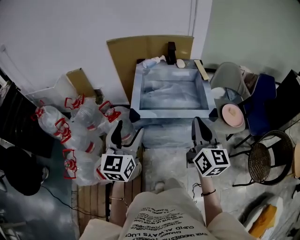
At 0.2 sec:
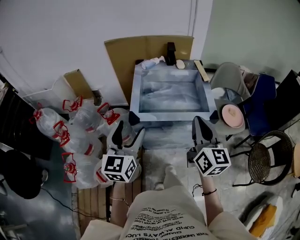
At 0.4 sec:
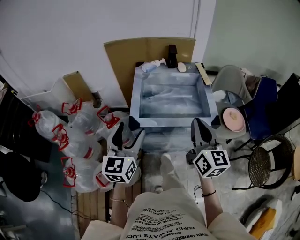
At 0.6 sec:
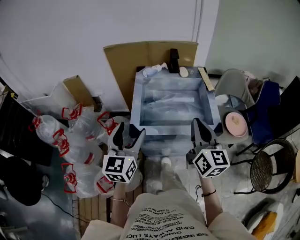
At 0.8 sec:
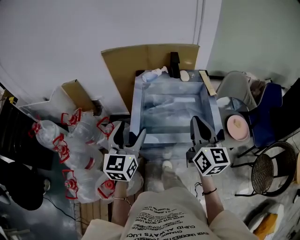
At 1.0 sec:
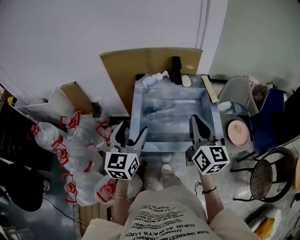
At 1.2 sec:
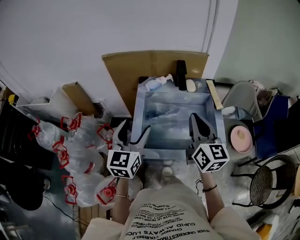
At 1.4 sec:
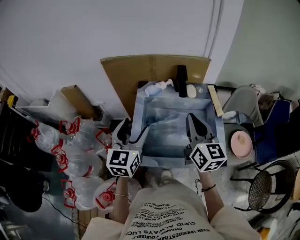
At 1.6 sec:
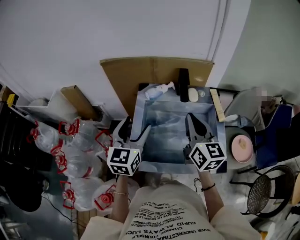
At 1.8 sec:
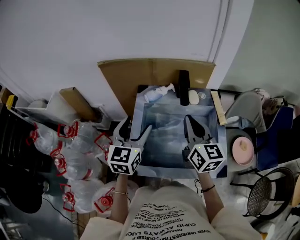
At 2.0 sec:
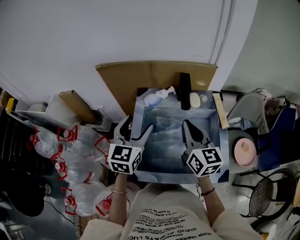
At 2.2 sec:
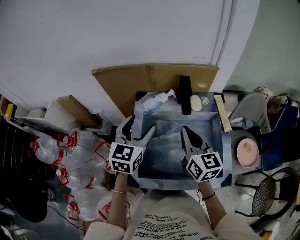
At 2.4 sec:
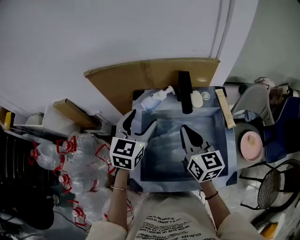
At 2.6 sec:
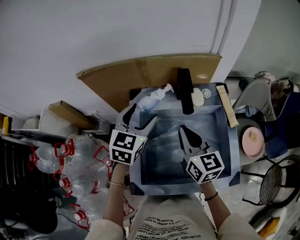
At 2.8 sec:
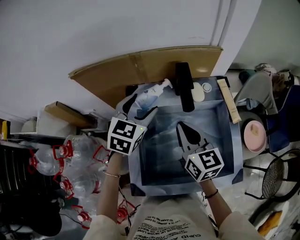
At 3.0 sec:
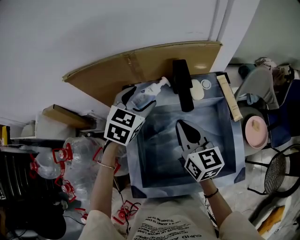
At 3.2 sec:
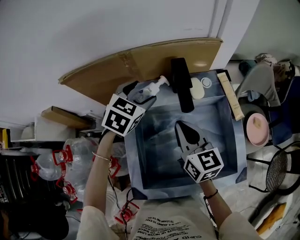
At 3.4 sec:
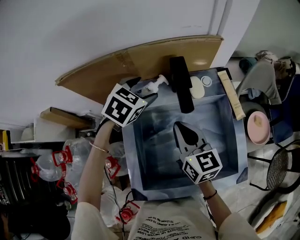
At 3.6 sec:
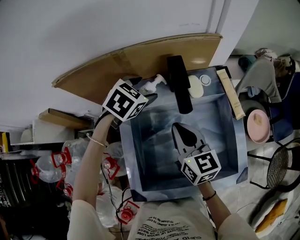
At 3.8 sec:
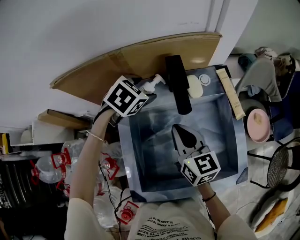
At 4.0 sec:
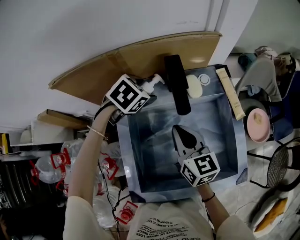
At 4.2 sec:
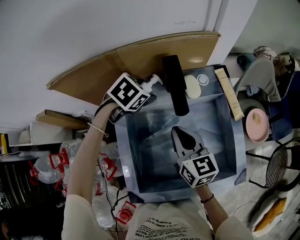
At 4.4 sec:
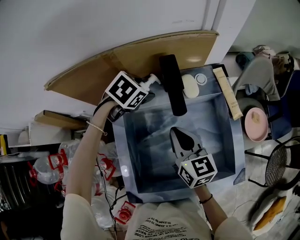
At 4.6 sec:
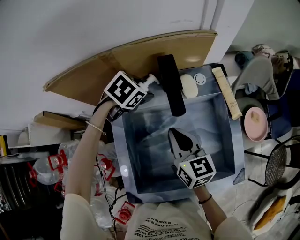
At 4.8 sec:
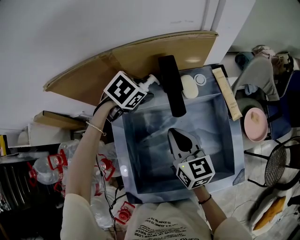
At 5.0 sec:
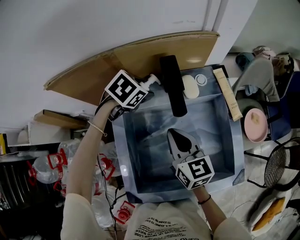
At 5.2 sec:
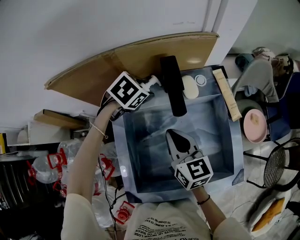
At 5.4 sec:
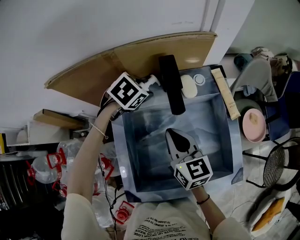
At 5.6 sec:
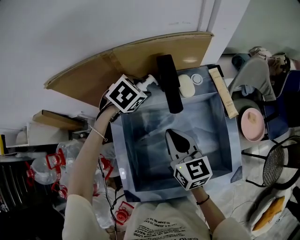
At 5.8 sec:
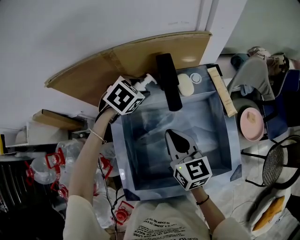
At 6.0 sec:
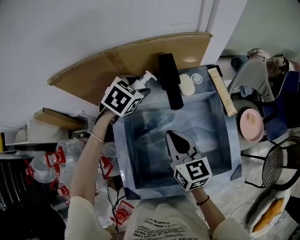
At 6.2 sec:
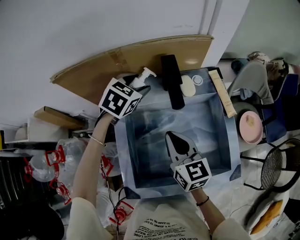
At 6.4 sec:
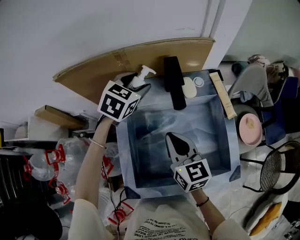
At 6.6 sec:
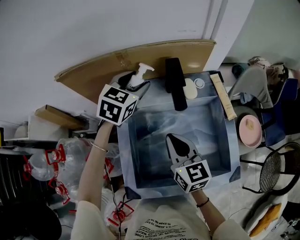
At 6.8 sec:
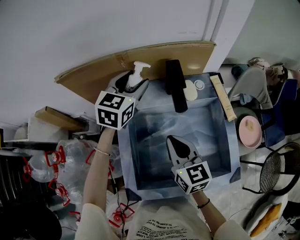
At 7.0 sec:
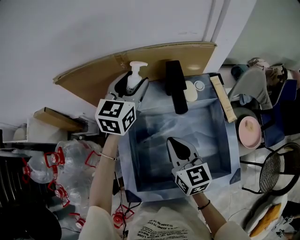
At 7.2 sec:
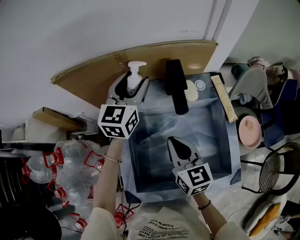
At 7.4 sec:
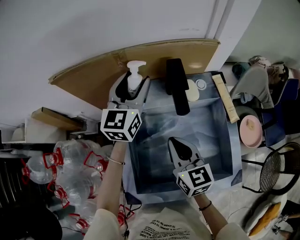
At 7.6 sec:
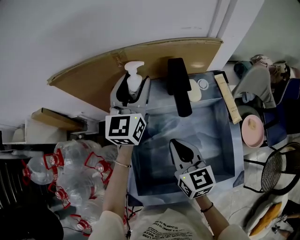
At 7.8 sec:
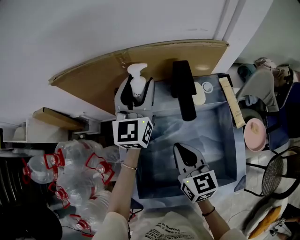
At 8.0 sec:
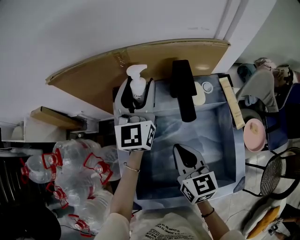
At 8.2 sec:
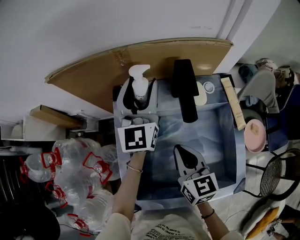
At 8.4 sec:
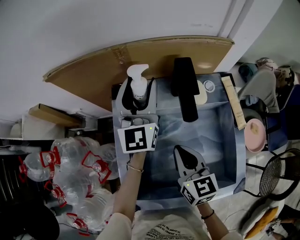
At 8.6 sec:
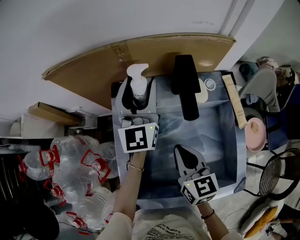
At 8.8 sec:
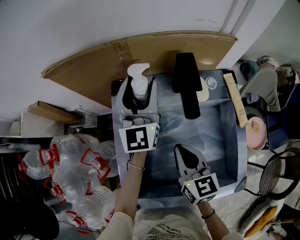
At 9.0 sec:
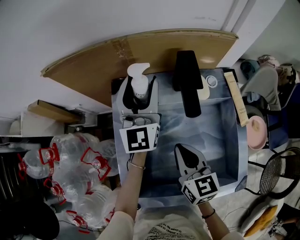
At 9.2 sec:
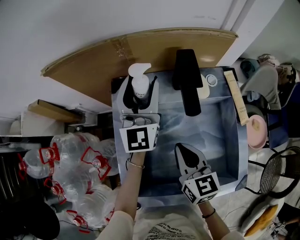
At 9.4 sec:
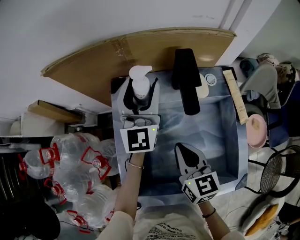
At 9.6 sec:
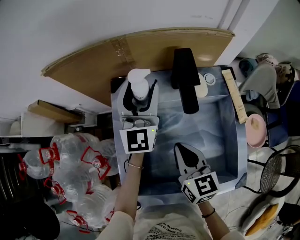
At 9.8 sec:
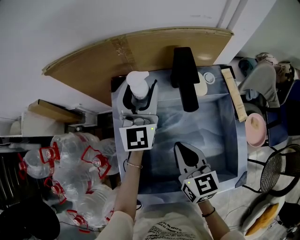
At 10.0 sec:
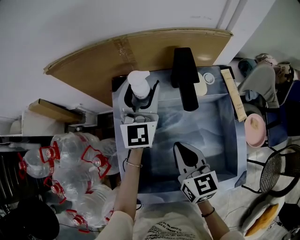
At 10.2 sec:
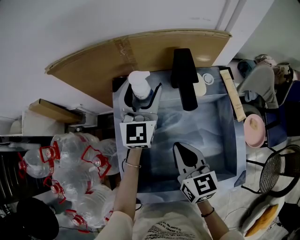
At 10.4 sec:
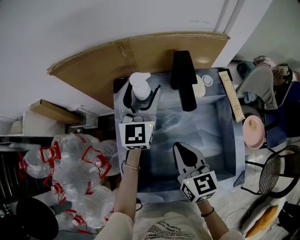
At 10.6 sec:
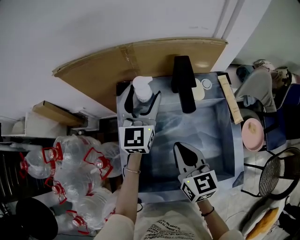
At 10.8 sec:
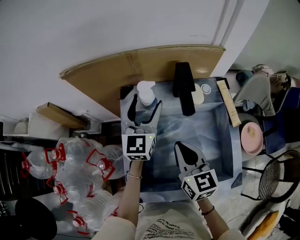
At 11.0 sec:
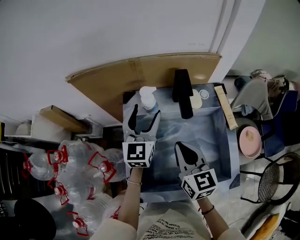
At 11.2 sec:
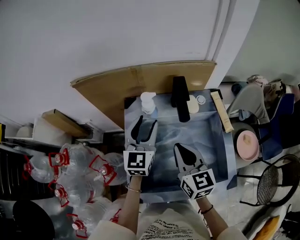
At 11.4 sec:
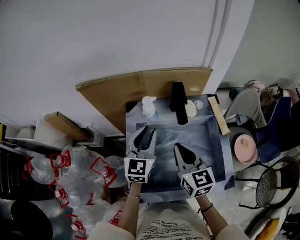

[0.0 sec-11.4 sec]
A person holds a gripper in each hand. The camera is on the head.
0.0 sec to 1.4 sec: Both grippers travel together forward, about 25 cm.
1.4 sec to 2.8 sec: The right gripper heads forward and downward, covering some 15 cm; the left gripper is displaced forward by about 20 cm, and rotates about 30 degrees.
2.8 sec to 4.2 sec: The left gripper shifts roughly 15 cm downward and forward, and angles its fingers downward, by about 40 degrees. Meanwhile the right gripper goes roughly 5 cm downward.
4.2 sec to 5.6 sec: The grippers make only small movements.
5.6 sec to 7.2 sec: The left gripper heads upward, covering roughly 15 cm, and points its fingers approximately 50 degrees further upward.
7.2 sec to 8.6 sec: The left gripper swivels some 20 degrees.
8.6 sec to 10.0 sec: The grippers move only a little.
10.0 sec to 11.4 sec: The right gripper is displaced upward by roughly 10 cm. The left gripper goes roughly 10 cm backward, and closes.

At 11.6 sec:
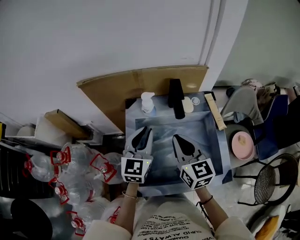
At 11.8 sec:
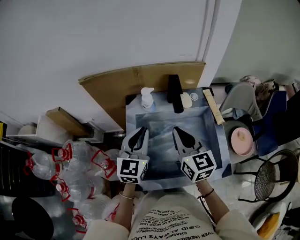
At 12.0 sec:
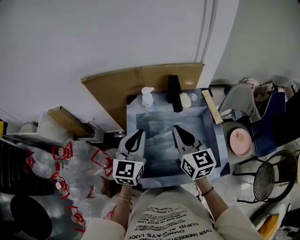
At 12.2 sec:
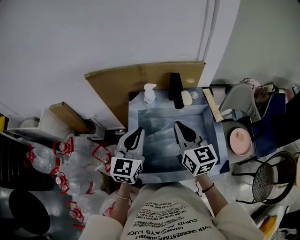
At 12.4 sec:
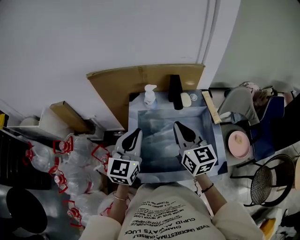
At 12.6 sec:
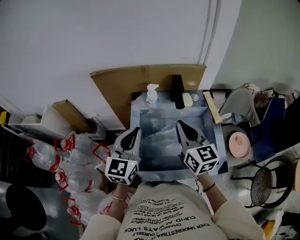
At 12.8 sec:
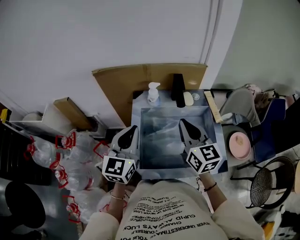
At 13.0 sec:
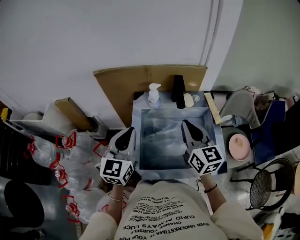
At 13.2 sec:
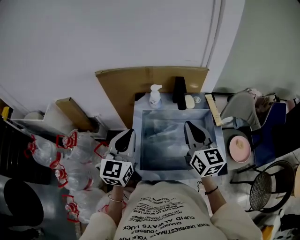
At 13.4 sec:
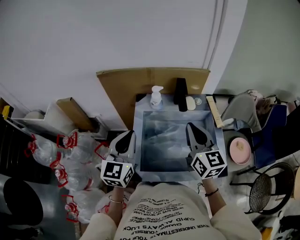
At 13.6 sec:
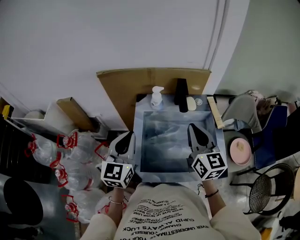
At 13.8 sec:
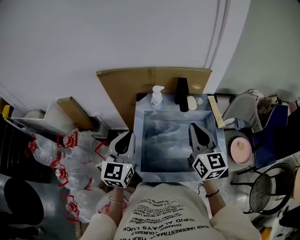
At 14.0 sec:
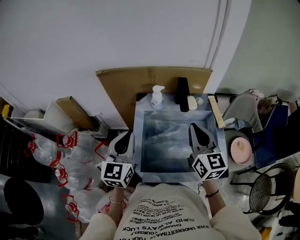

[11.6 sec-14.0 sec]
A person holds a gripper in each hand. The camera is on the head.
11.6 sec to 12.8 sec: The right gripper heads upward, covering roughly 5 cm. The left gripper moves backward, upward and to the left, approximately 15 cm.
12.8 sec to 14.0 sec: The grippers make only small movements.

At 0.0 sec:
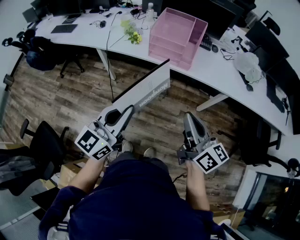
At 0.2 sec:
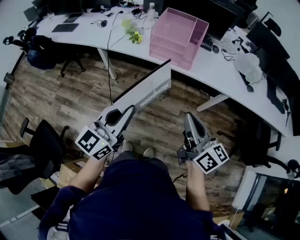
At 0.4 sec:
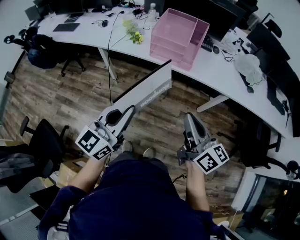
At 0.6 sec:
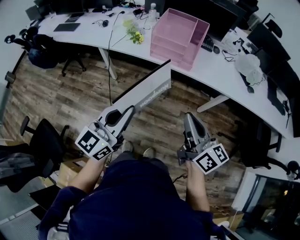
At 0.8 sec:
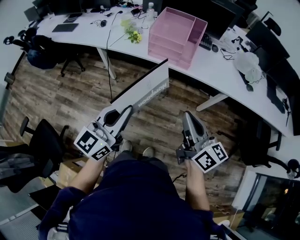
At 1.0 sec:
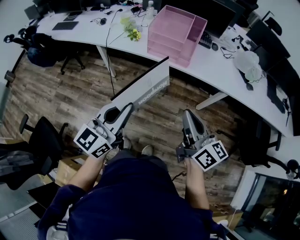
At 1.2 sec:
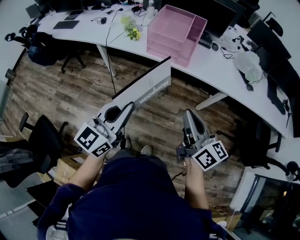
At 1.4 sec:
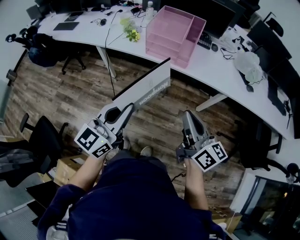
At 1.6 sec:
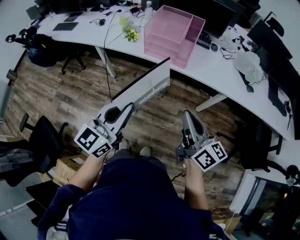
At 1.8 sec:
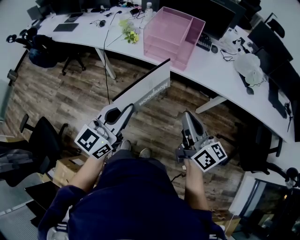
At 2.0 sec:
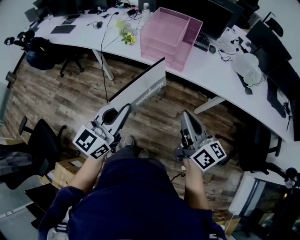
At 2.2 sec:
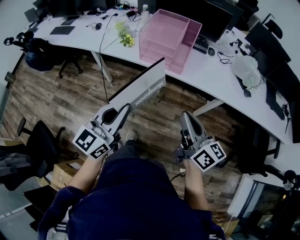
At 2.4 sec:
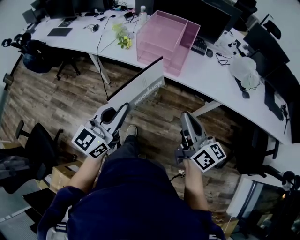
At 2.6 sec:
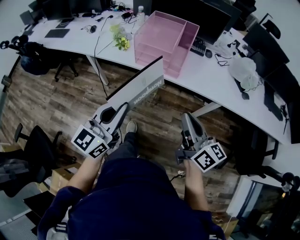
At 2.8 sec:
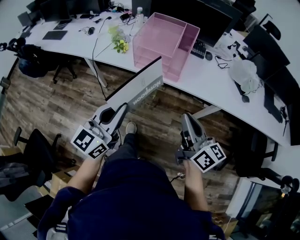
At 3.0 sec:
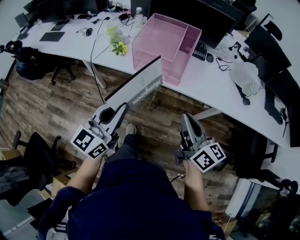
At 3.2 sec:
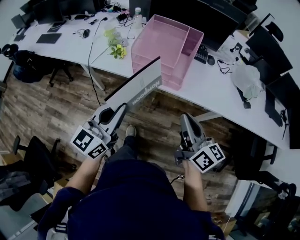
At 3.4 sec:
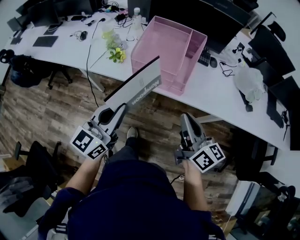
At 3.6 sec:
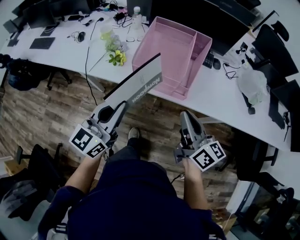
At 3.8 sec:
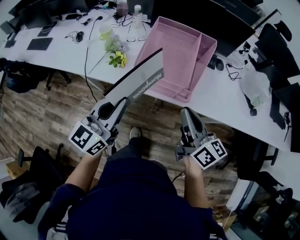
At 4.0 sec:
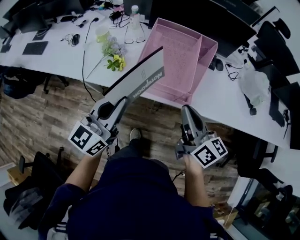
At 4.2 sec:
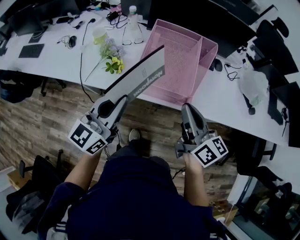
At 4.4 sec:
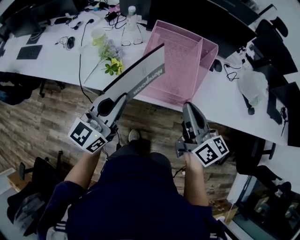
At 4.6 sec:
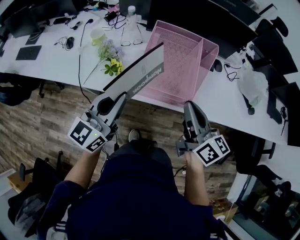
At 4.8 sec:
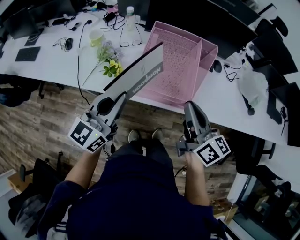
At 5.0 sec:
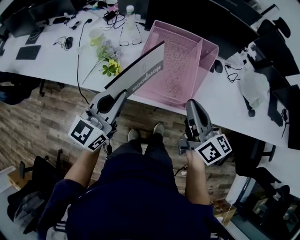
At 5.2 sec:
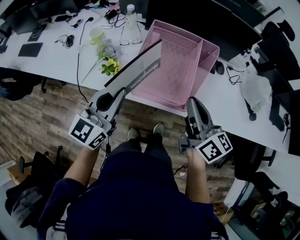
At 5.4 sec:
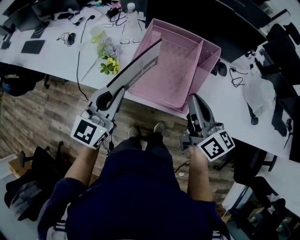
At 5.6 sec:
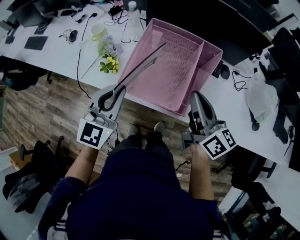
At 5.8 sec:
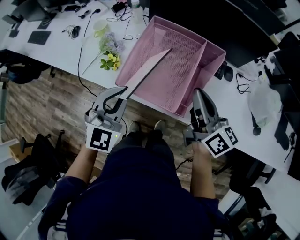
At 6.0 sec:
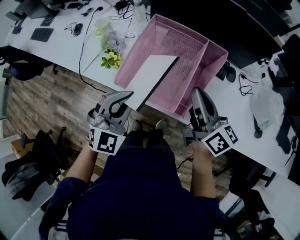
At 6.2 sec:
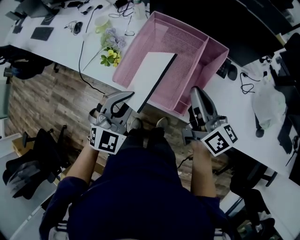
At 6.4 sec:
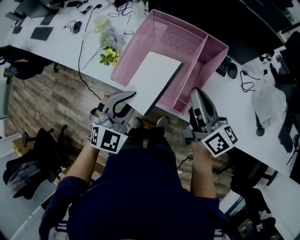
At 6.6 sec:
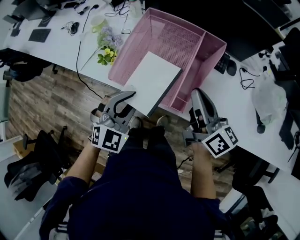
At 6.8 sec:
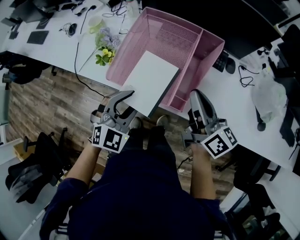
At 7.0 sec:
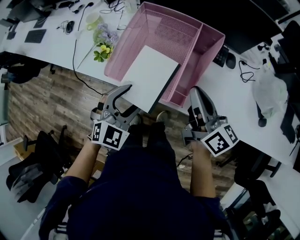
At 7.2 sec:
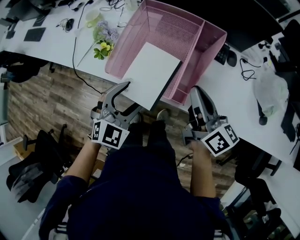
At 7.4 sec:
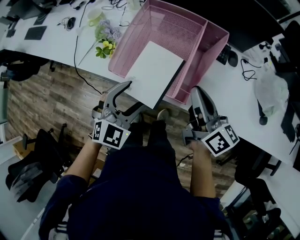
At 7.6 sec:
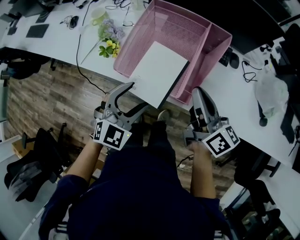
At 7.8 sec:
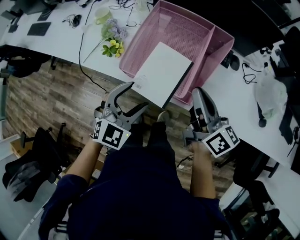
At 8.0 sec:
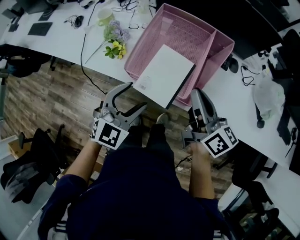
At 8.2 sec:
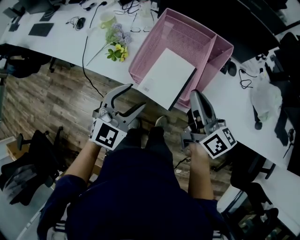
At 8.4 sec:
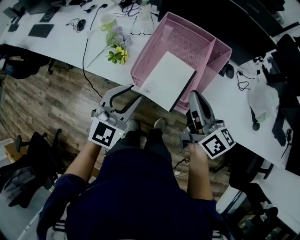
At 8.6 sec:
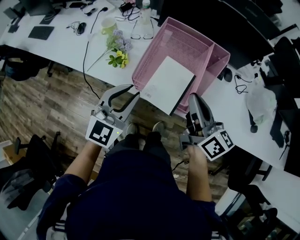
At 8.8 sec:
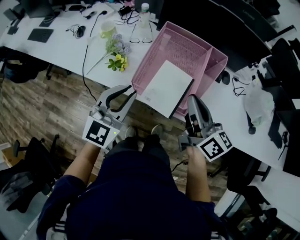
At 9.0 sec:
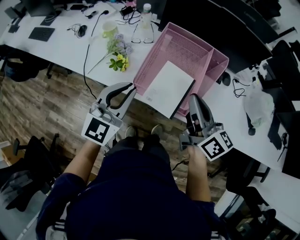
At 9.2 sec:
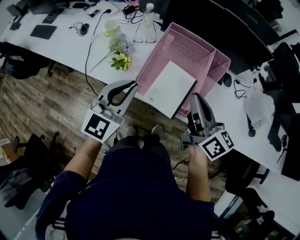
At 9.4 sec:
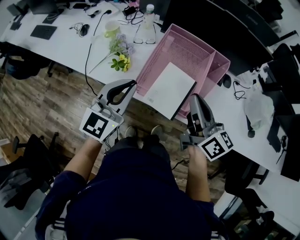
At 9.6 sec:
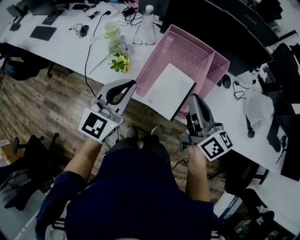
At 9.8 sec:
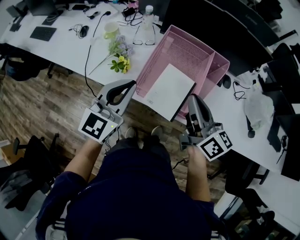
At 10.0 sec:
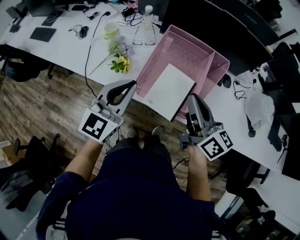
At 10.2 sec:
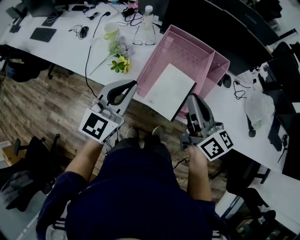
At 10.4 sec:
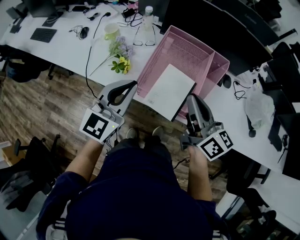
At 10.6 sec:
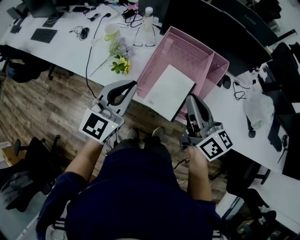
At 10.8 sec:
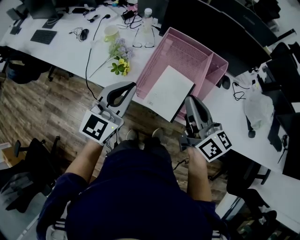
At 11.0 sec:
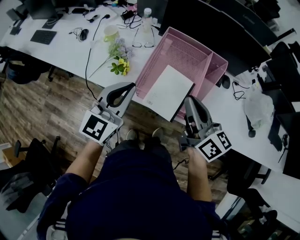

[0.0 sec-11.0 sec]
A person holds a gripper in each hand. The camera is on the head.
0.0 sec to 1.6 sec: The two grippers go approximately 5 cm to the right.
1.6 sec to 3.2 sec: Both grippers travel together forward, roughly 20 cm.
3.2 sec to 4.8 sec: The two grippers go roughly 20 cm forward.
4.8 sec to 6.2 sec: The left gripper heads to the right and downward, covering some 15 cm, and rotates around the line of its fingers by approximately 40 degrees, clockwise from behind. Meanwhile the right gripper moves forward and to the right, roughly 15 cm.
6.2 sec to 7.8 sec: The right gripper changes place by approximately 5 cm; the left gripper opens its fingers.
7.8 sec to 9.4 sec: The right gripper moves to the left and upward, about 10 cm. Meanwhile the left gripper is displaced upward, to the left and forward by about 15 cm, swivels roughly 30 degrees, and closes up.
9.4 sec to 11.0 sec: Neither gripper changes place.
